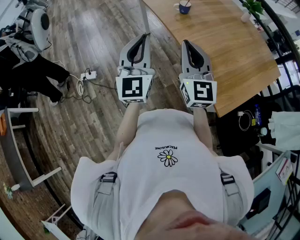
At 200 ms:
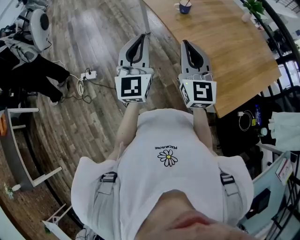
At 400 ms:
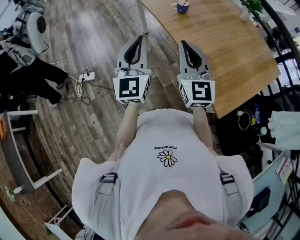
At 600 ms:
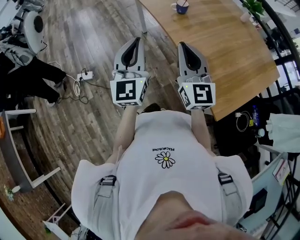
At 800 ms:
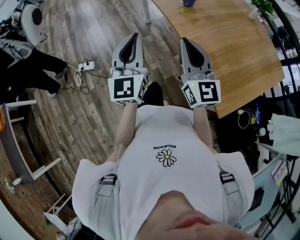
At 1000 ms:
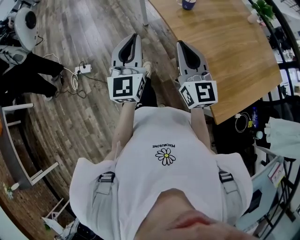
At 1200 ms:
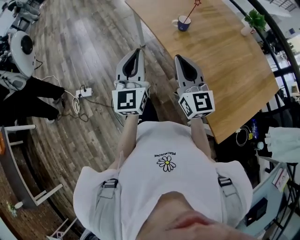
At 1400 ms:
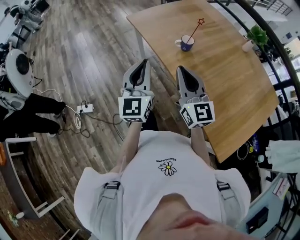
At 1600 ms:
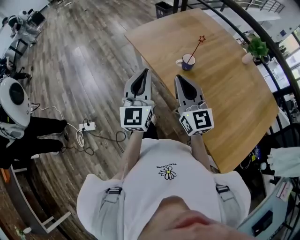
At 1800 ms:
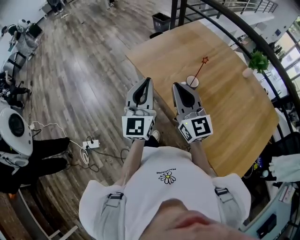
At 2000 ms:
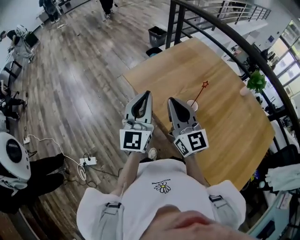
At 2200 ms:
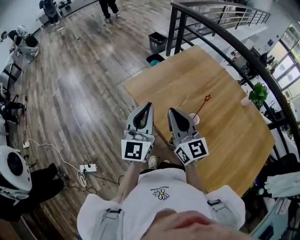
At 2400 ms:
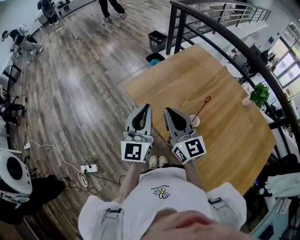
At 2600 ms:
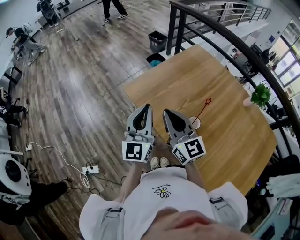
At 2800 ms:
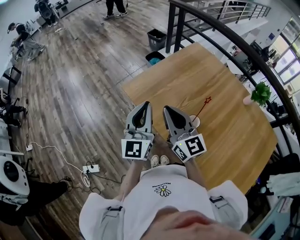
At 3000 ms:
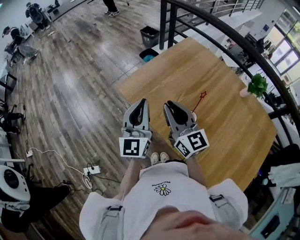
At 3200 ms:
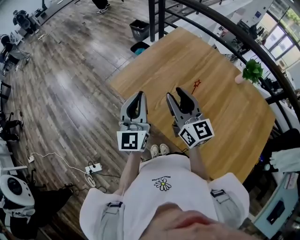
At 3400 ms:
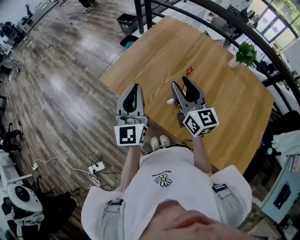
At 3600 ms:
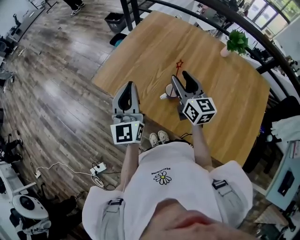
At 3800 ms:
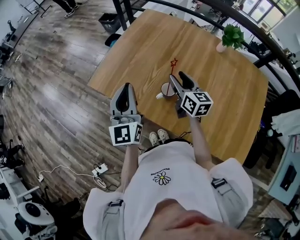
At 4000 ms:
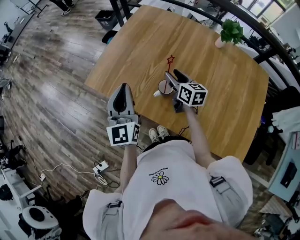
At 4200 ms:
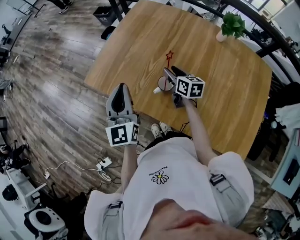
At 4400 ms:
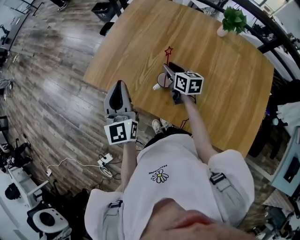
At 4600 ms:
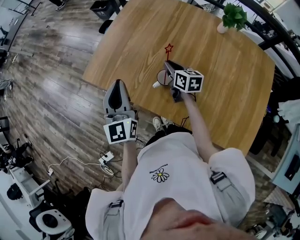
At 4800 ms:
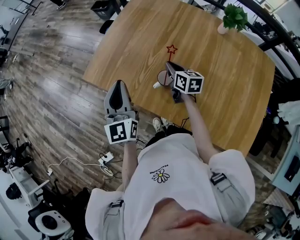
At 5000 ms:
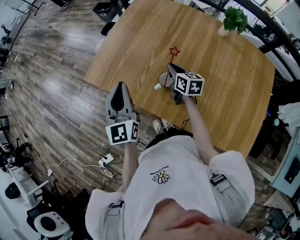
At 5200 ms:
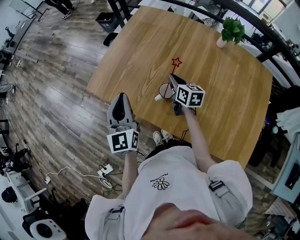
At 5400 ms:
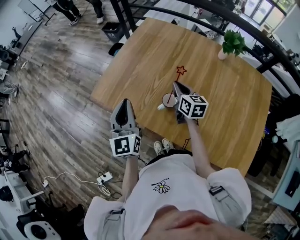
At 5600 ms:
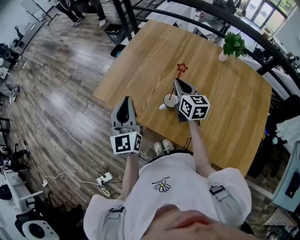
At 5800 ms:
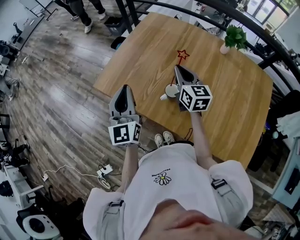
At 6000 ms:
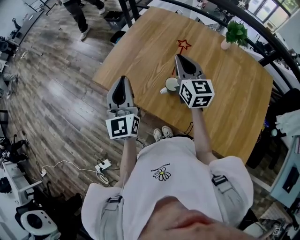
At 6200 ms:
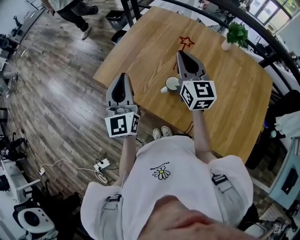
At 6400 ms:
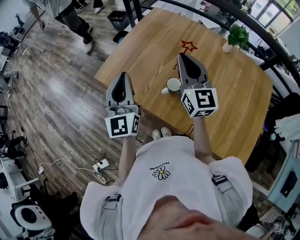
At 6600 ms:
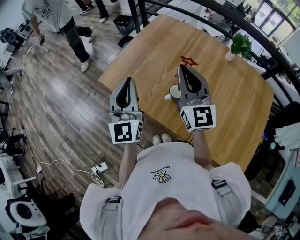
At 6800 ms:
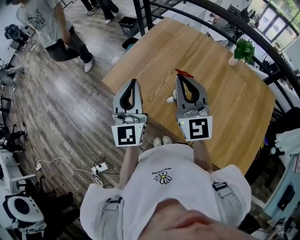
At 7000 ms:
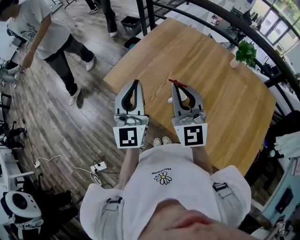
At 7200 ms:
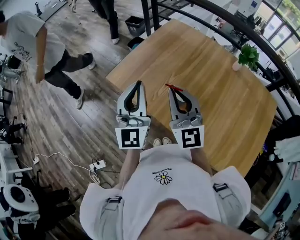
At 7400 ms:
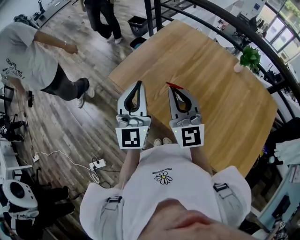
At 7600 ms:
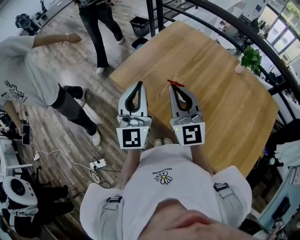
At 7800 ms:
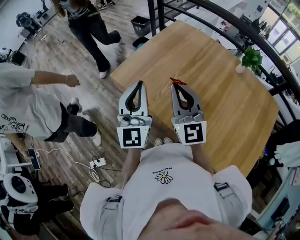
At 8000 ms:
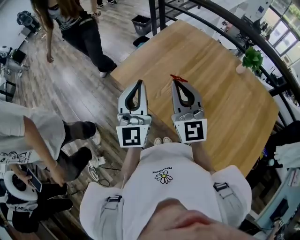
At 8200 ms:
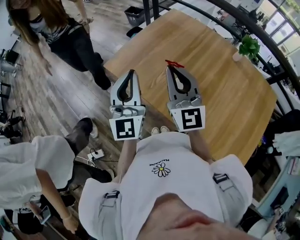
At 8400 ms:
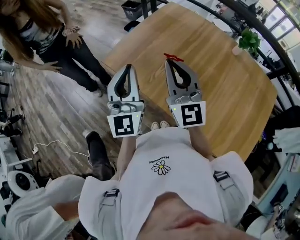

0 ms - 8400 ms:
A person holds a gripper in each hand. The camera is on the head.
0 ms - 1400 ms: Both grippers move forward, roughly 20 cm.
1400 ms - 2800 ms: The grippers both shift forward by approximately 30 cm.
2800 ms - 4200 ms: The left gripper heads to the right, covering about 10 cm. Meanwhile the right gripper moves downward and to the right, roughly 30 cm, angles its fingers downward, by roughly 30 degrees, and opens up.
4200 ms - 5600 ms: The right gripper moves upward, some 10 cm, and closes up.
5600 ms - 7000 ms: The left gripper shifts about 10 cm upward. The right gripper moves upward, backward and to the left, some 25 cm, and swivels some 40 degrees.
7000 ms - 8400 ms: The grippers stay close to where they were, moving slightly.

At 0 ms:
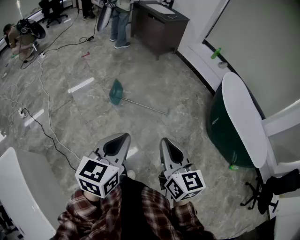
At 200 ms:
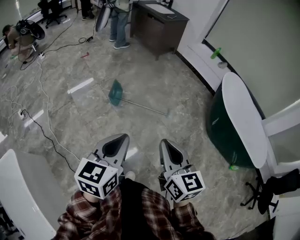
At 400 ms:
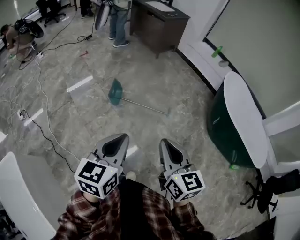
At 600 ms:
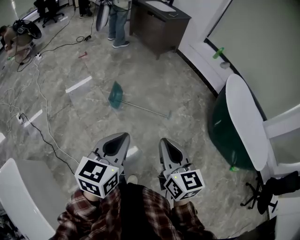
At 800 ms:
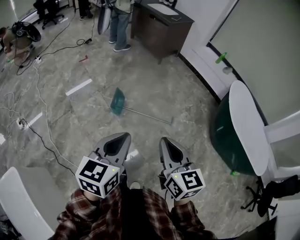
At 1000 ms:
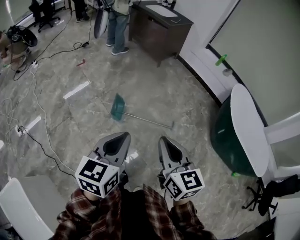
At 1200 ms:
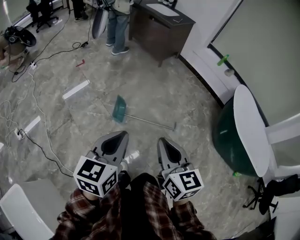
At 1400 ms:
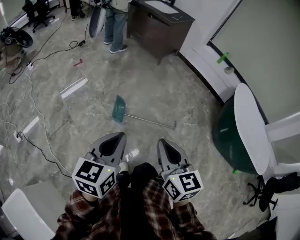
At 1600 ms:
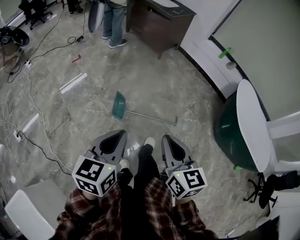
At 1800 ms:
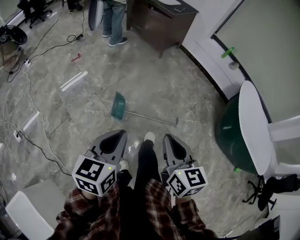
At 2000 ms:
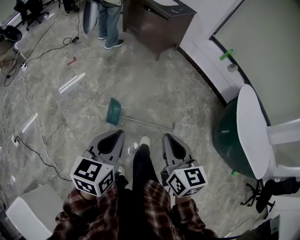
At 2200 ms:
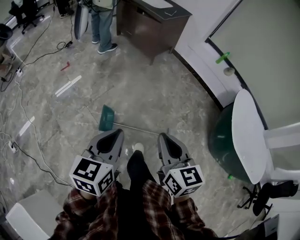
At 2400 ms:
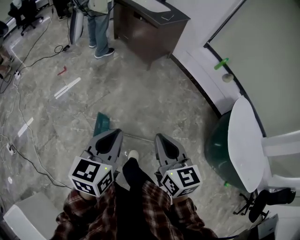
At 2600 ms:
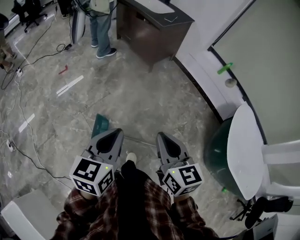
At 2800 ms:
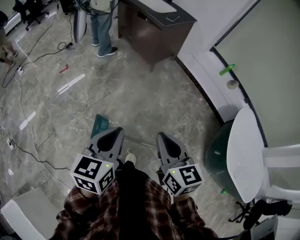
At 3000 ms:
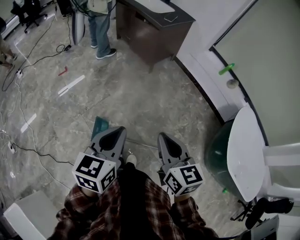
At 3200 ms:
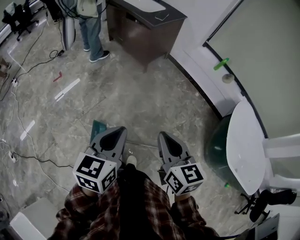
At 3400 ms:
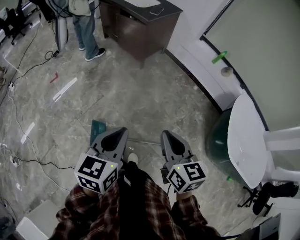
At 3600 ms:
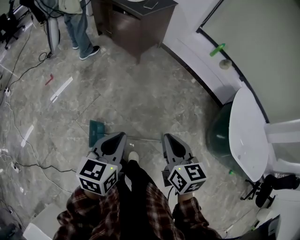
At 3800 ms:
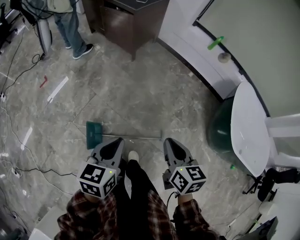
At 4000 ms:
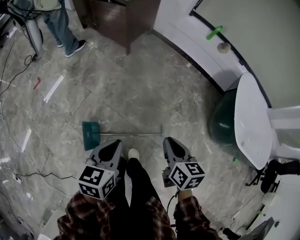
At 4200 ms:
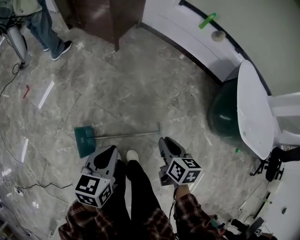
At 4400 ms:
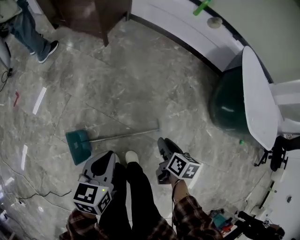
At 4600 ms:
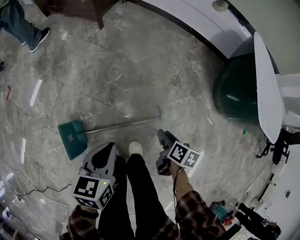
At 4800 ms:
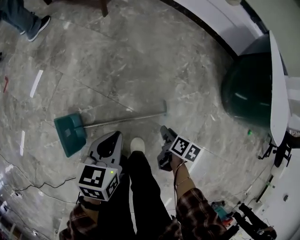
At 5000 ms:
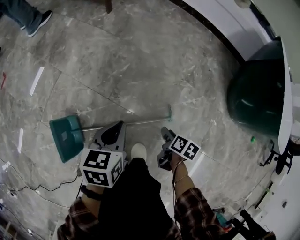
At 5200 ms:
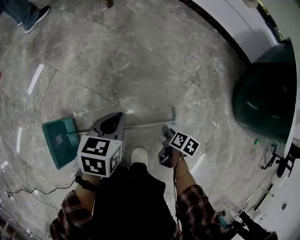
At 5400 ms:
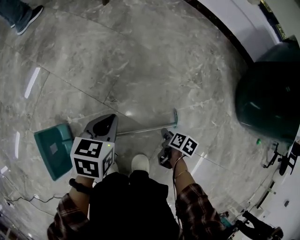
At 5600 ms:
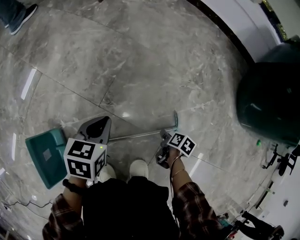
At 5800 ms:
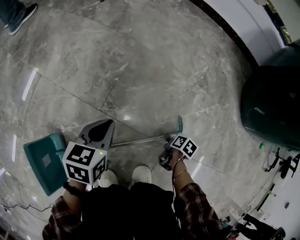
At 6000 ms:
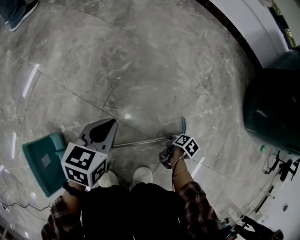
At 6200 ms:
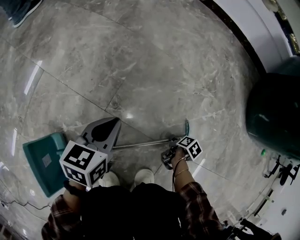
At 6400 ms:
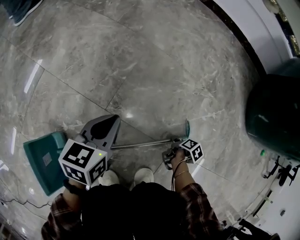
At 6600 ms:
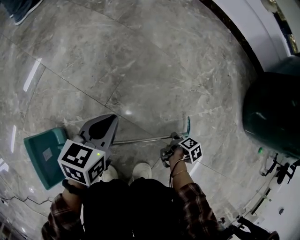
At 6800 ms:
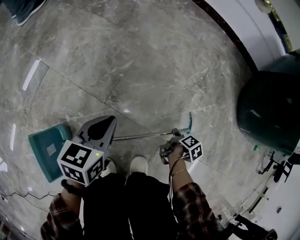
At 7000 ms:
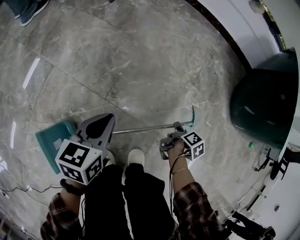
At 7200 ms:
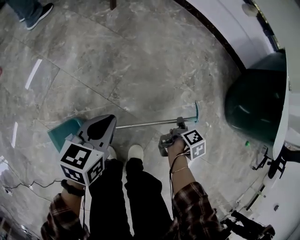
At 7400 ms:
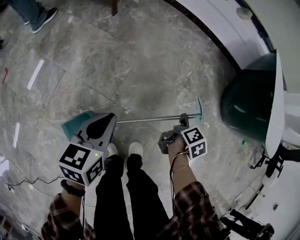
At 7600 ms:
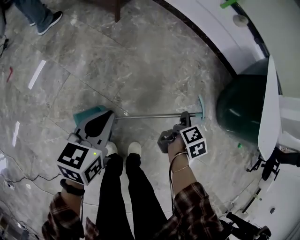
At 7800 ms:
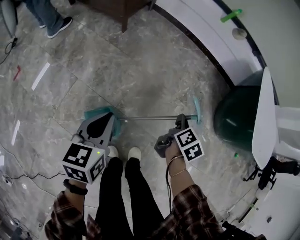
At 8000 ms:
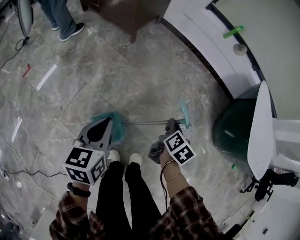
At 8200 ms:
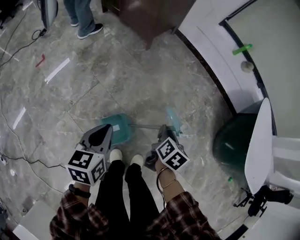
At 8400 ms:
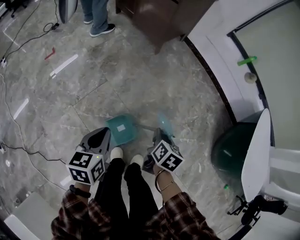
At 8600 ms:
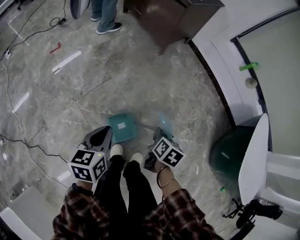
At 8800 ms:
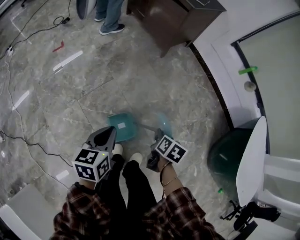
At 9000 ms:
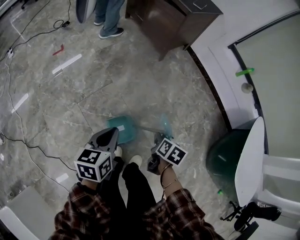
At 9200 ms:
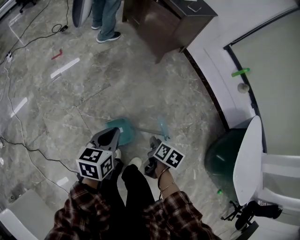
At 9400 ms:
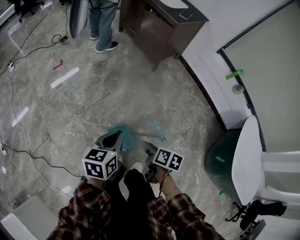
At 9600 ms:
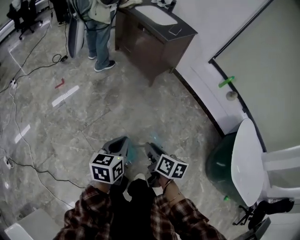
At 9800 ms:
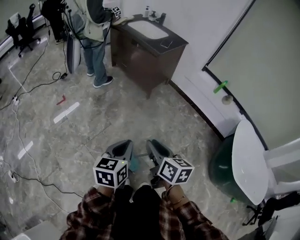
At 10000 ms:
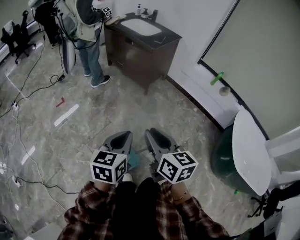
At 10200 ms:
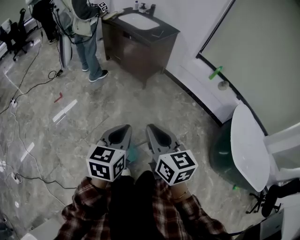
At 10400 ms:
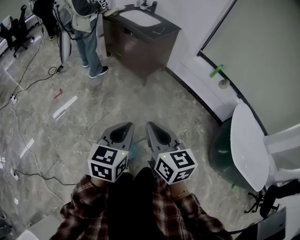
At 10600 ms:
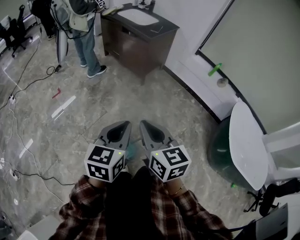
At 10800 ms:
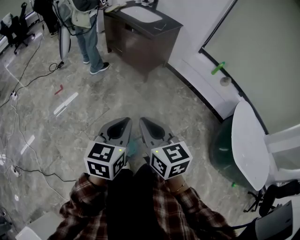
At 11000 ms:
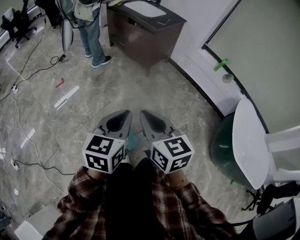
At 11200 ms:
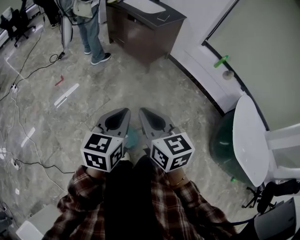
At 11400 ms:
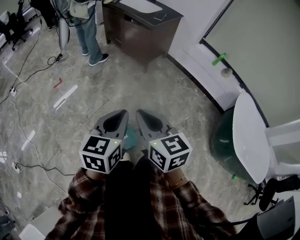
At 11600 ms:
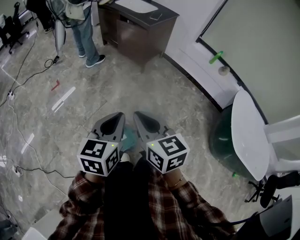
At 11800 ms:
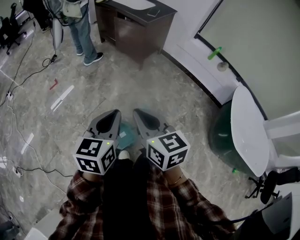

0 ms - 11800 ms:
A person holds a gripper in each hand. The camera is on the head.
0 ms - 1400 ms: The two grippers go approximately 30 cm forward and to the left.
1400 ms - 3000 ms: The two grippers travel together, forward and to the right, about 40 cm.
3000 ms - 4400 ms: Both grippers travel together downward, some 35 cm. The right gripper rotates about 60 degrees, and opens; the left gripper swivels roughly 30 degrees.
4400 ms - 6000 ms: Both grippers travel together downward, approximately 50 cm. The right gripper changes its angle by roughly 40 degrees.
6000 ms - 7400 ms: Both grippers move upward, about 35 cm. The right gripper changes its angle by some 30 degrees.
7400 ms - 8800 ms: The right gripper moves roughly 35 cm, and rotates around the line of its fingers by some 50 degrees, counterclockwise from behind; the left gripper shifts by some 30 cm, and changes its angle by approximately 30 degrees.
8800 ms - 10400 ms: The two grippers go about 35 cm upward. The right gripper tilts its fingers some 40 degrees upward. Meanwhile the left gripper changes its angle by some 30 degrees.
10400 ms - 11800 ms: The grippers move only a little.

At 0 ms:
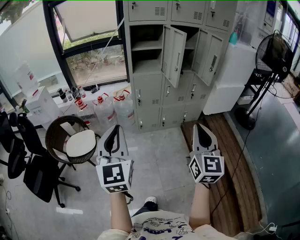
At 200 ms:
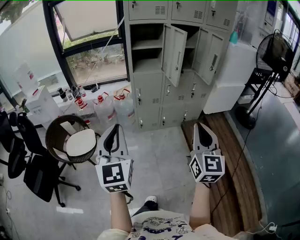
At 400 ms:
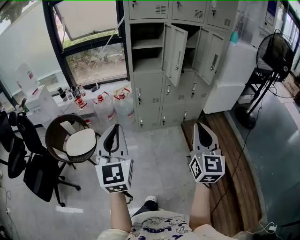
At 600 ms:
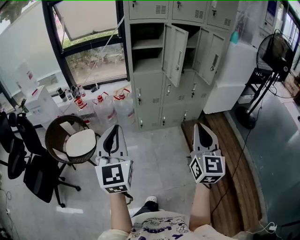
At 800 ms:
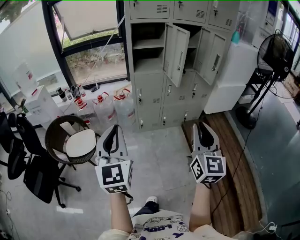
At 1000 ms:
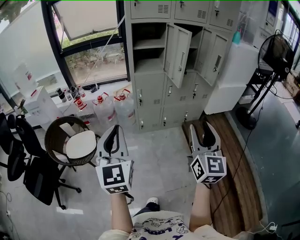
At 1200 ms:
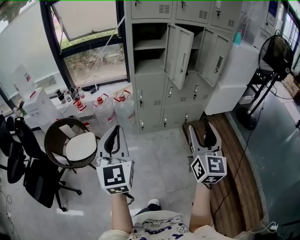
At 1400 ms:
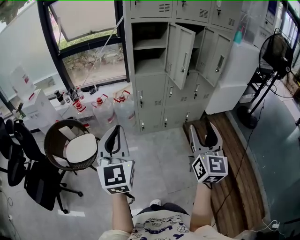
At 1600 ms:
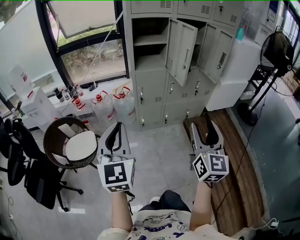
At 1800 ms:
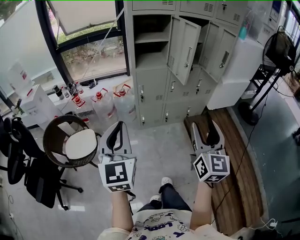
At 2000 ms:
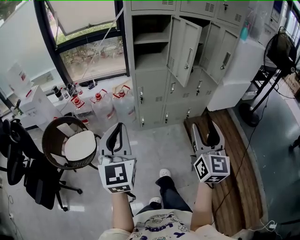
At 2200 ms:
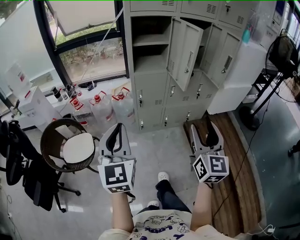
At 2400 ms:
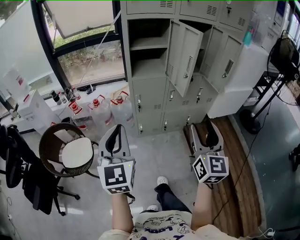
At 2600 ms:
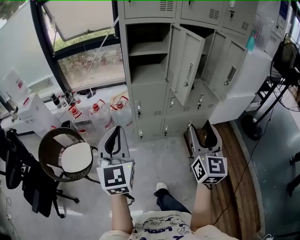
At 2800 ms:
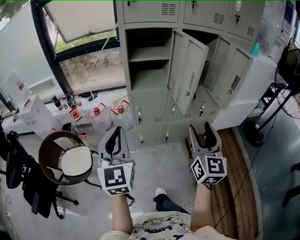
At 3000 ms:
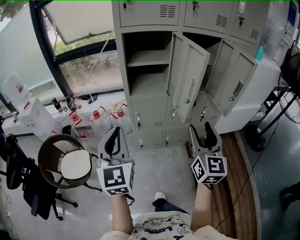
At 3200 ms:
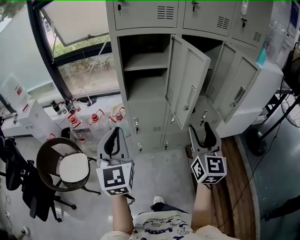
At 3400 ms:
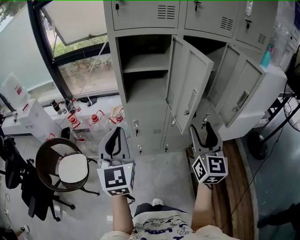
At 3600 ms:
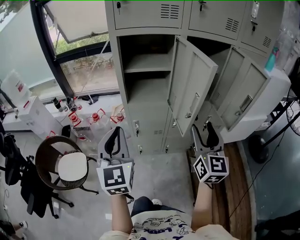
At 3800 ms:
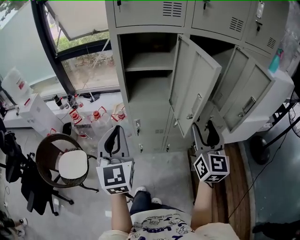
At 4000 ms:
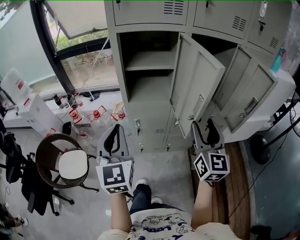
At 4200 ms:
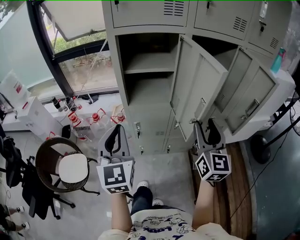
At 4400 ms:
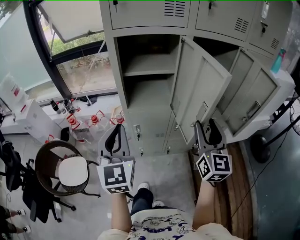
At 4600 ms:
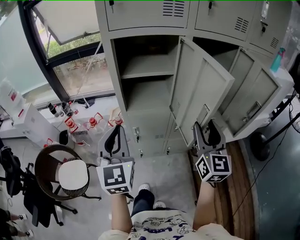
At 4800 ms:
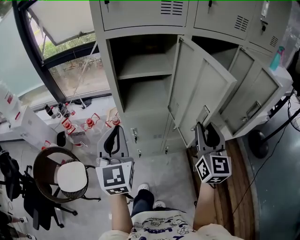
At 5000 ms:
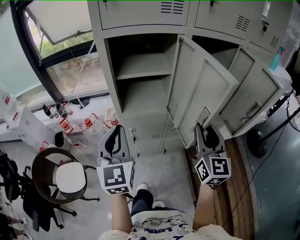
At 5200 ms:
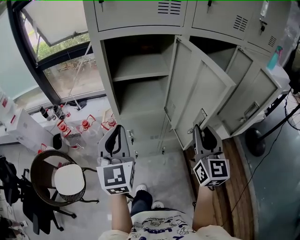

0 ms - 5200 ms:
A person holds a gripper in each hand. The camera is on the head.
0 ms - 1800 ms: Both grippers move forward, some 10 cm. The right gripper opens up.
1800 ms - 3400 ms: Both grippers travel together forward, approximately 30 cm.
3400 ms - 5200 ms: The grippers both shift forward by about 15 cm. The right gripper closes.
